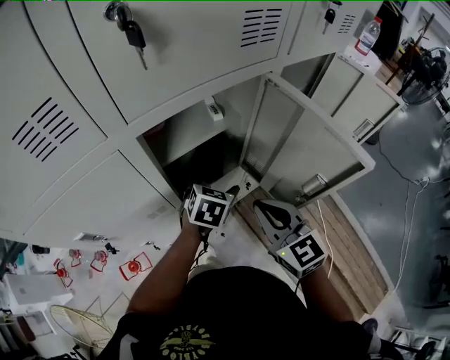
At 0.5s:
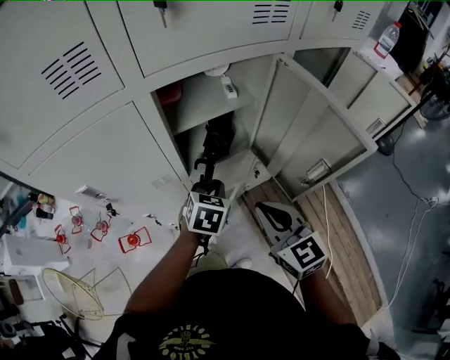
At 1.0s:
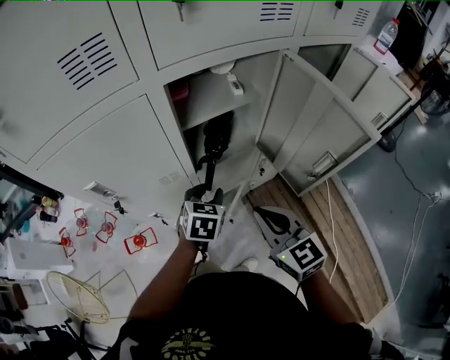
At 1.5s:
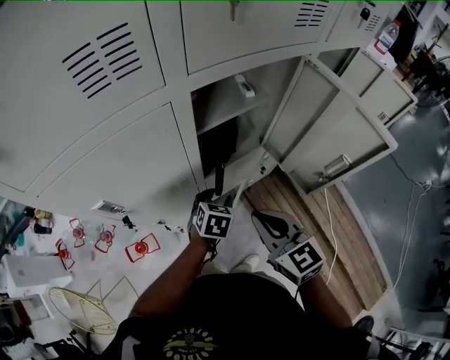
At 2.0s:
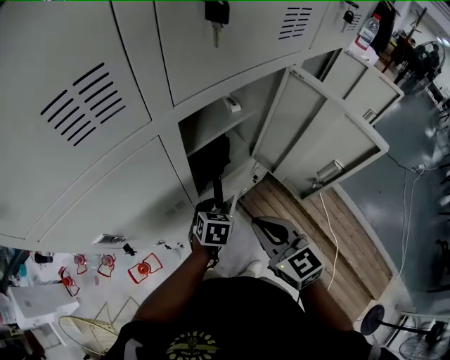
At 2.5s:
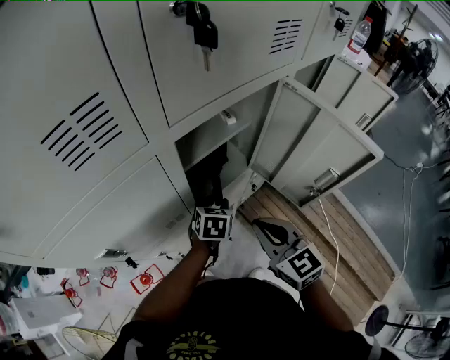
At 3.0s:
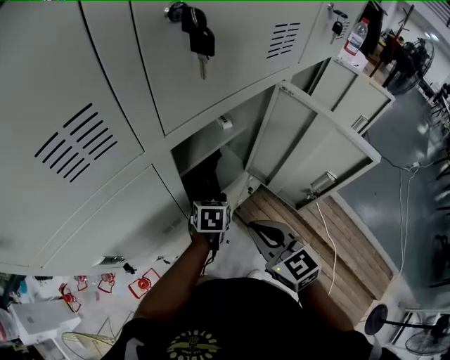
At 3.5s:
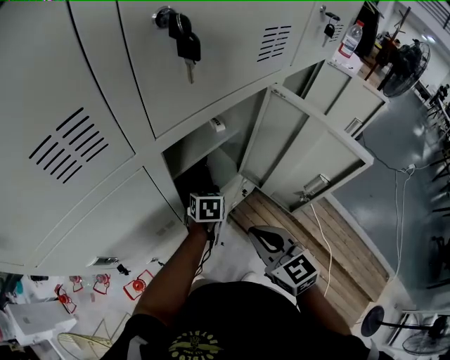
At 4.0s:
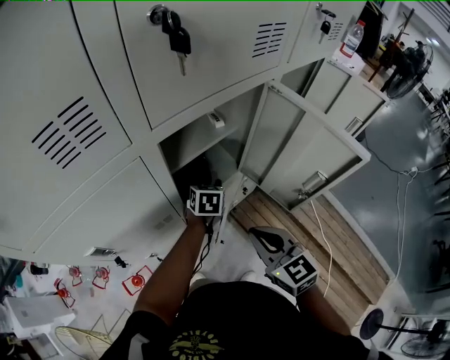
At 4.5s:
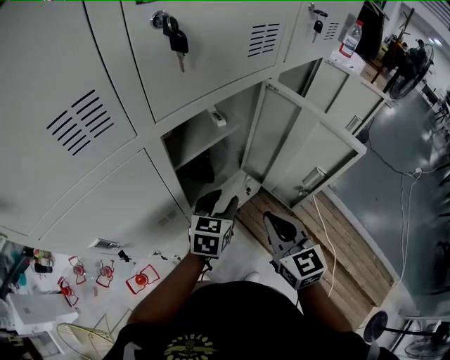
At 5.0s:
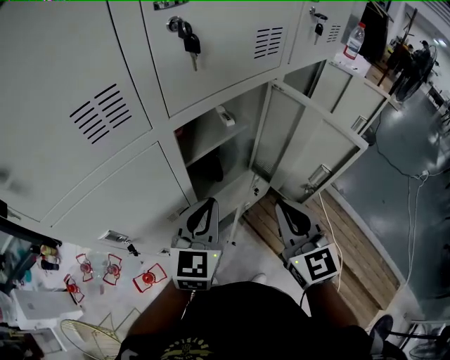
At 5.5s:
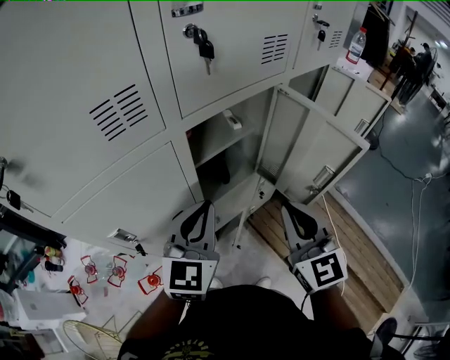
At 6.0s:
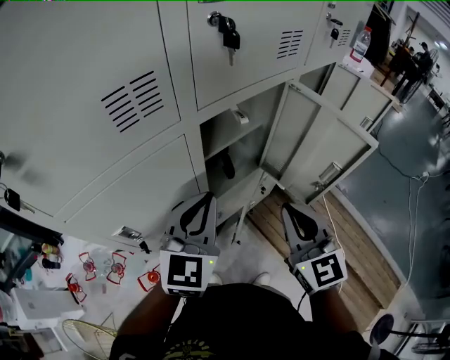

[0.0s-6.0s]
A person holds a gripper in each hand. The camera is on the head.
0.0s to 2.0s: The right gripper goes about 10 cm to the left, while the left gripper travels downward, to the left and backward by roughly 15 cm, and closes up.
2.0s to 4.0s: The left gripper is displaced forward by some 10 cm.
4.0s to 6.0s: The right gripper shifts approximately 10 cm upward, and swivels about 20 degrees, while the left gripper shifts some 30 cm upward and backward, tips its fingers upward by approximately 40 degrees, and closes its fingers.

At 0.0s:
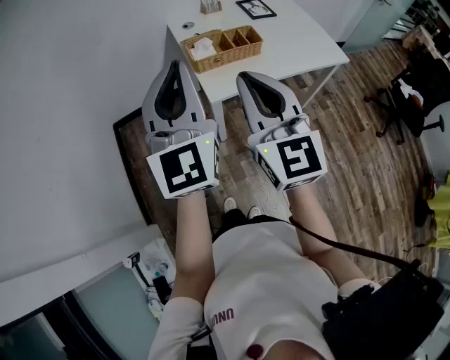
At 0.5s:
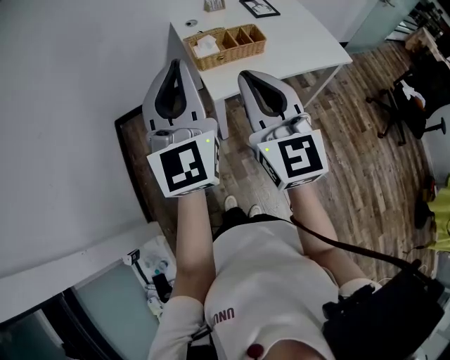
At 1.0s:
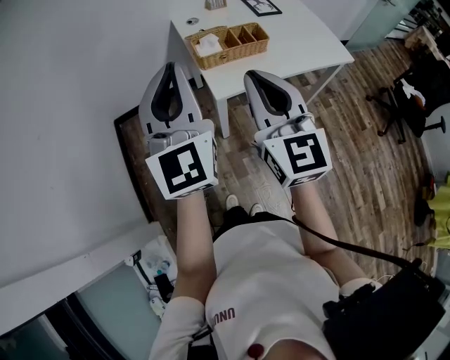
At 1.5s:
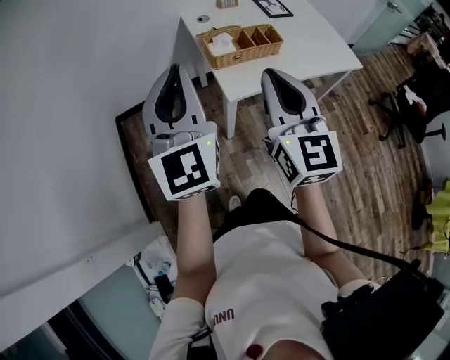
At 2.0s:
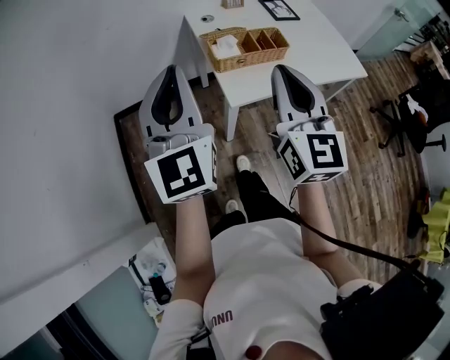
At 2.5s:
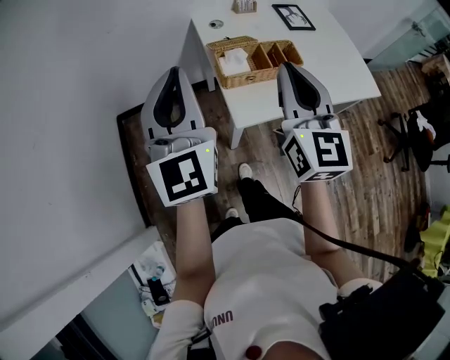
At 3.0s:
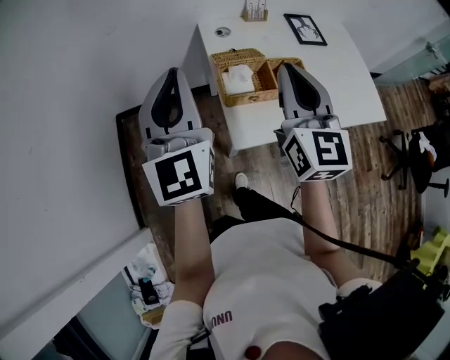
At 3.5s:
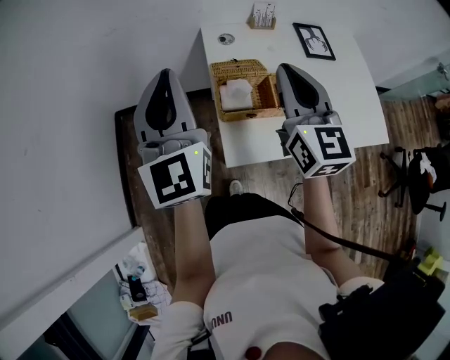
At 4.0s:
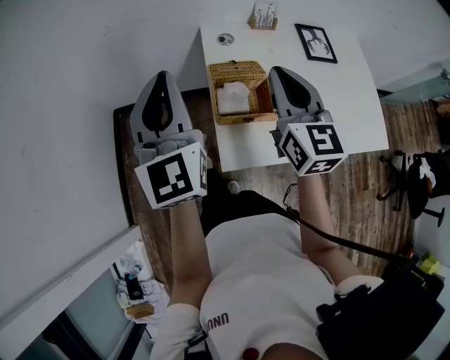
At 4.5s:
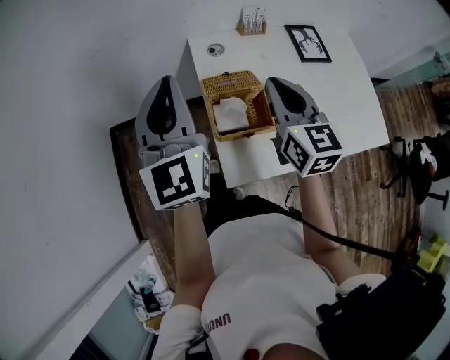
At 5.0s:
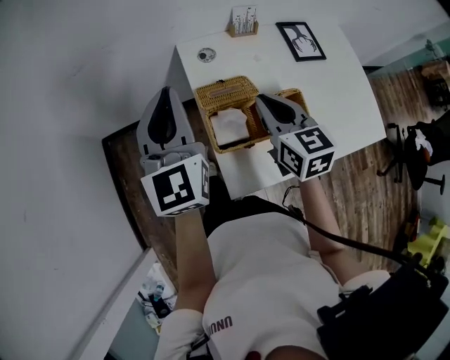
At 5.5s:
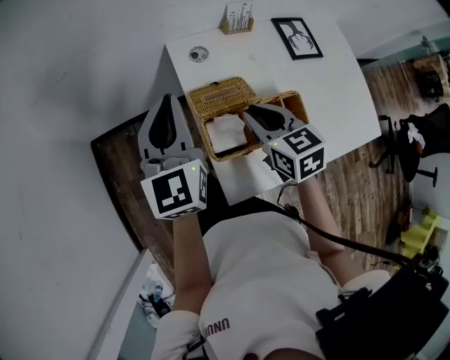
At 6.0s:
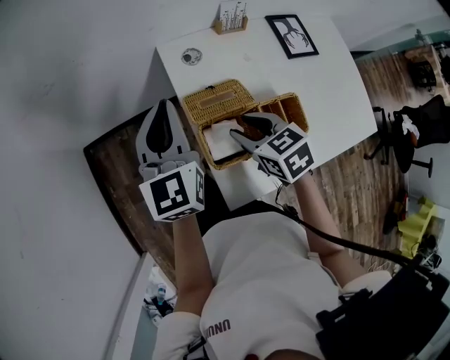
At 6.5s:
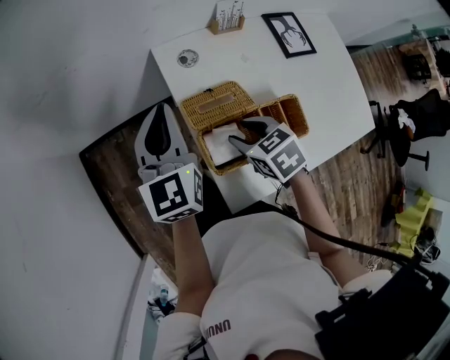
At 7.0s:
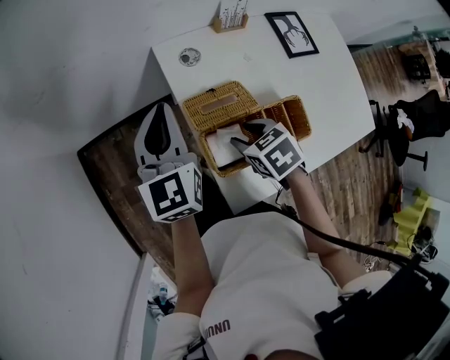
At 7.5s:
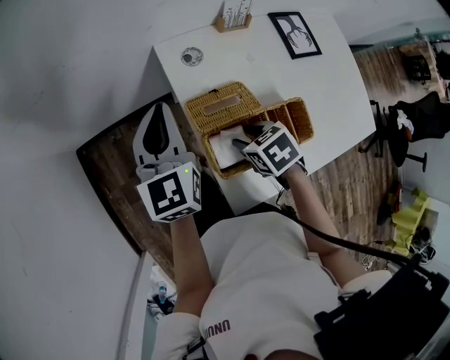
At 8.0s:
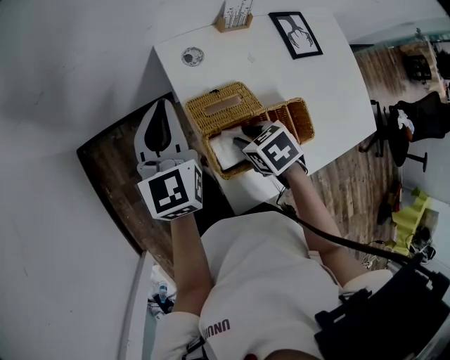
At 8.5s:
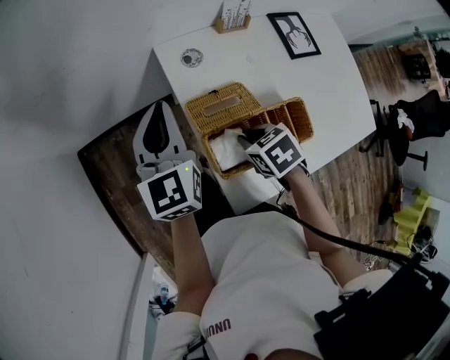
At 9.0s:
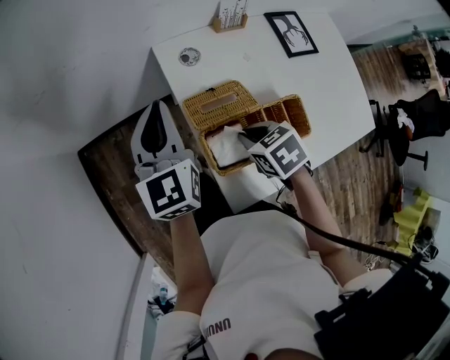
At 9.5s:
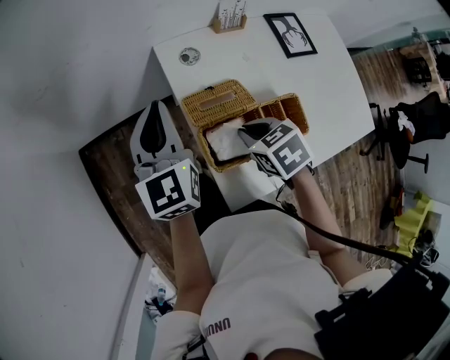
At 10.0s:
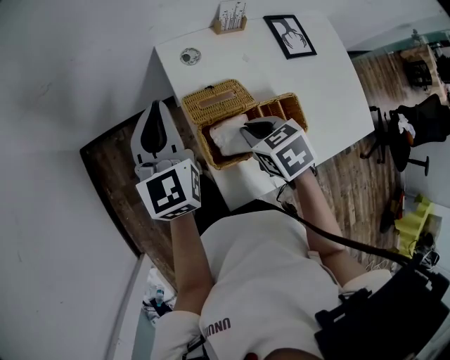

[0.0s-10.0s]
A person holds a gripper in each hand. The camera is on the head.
0.0s to 2.0s: The left gripper travels to the left and forward by about 10 cm. The right gripper moves forward, approximately 10 cm.
2.0s to 4.0s: The two grippers go some 25 cm forward.
4.0s to 6.0s: The right gripper is displaced downward by about 20 cm, points its fingers approximately 40 degrees further downward, and opens; the left gripper travels forward and downward by roughly 20 cm, and changes its angle by some 20 degrees.
6.0s to 8.0s: The left gripper moves roughly 5 cm, while the right gripper travels downward by roughly 5 cm, and swivels roughly 20 degrees.
8.0s to 10.0s: The right gripper heads upward, covering some 5 cm, and closes up.

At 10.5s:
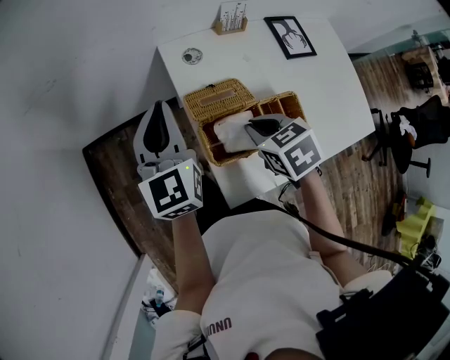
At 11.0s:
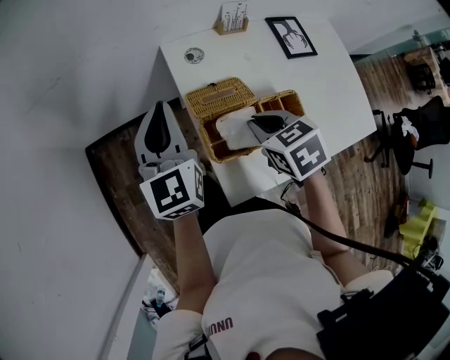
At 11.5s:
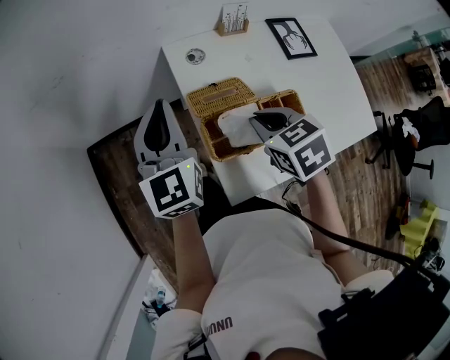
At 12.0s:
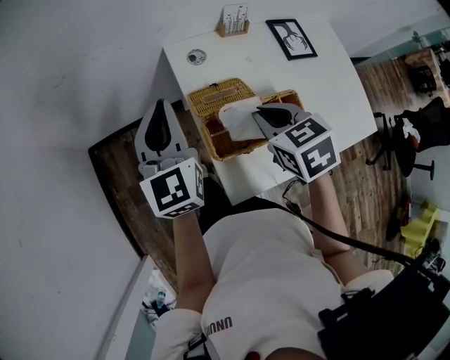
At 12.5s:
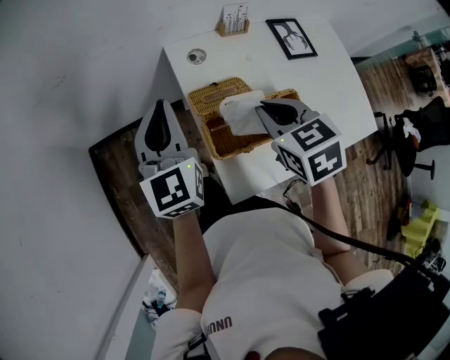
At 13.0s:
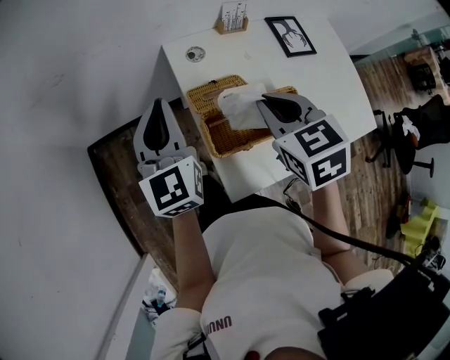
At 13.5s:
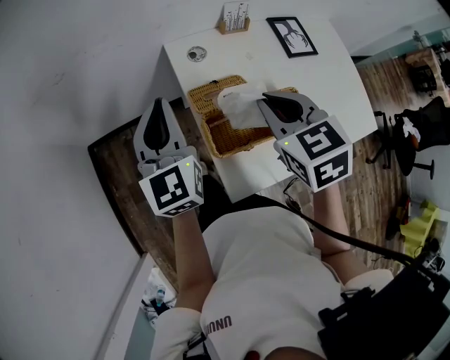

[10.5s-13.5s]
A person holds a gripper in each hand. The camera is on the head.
10.5s to 12.0s: The right gripper shifts approximately 5 cm upward.
12.0s to 13.5s: The right gripper travels upward by about 5 cm.

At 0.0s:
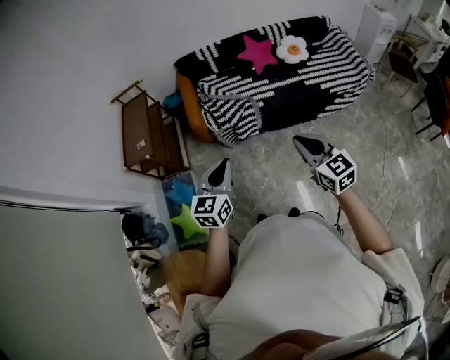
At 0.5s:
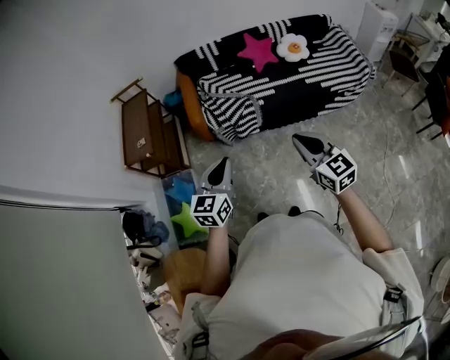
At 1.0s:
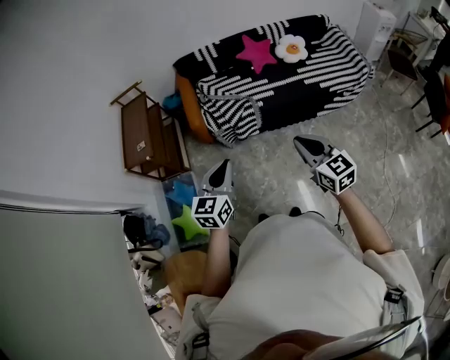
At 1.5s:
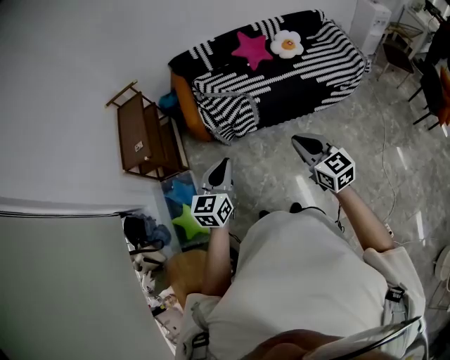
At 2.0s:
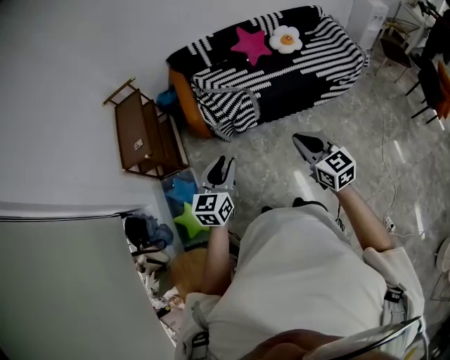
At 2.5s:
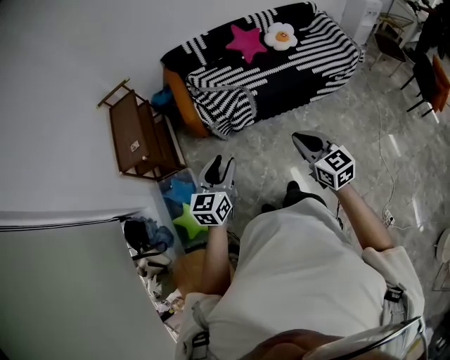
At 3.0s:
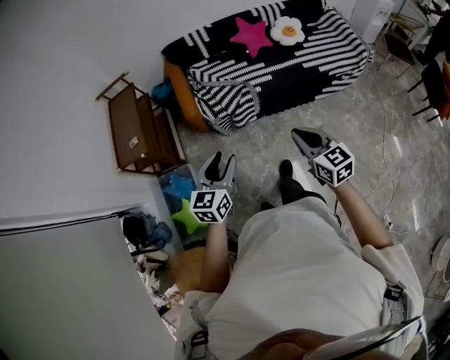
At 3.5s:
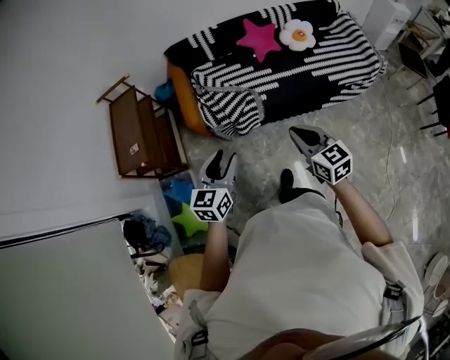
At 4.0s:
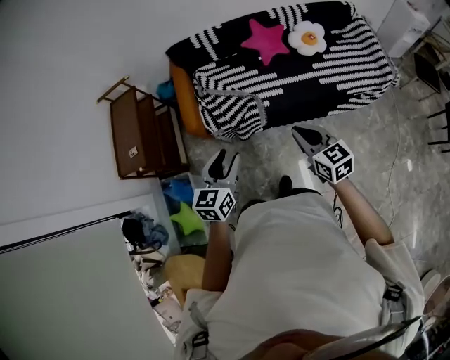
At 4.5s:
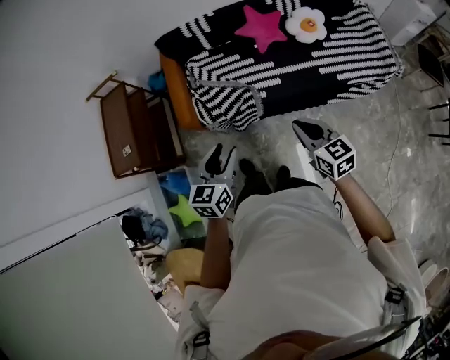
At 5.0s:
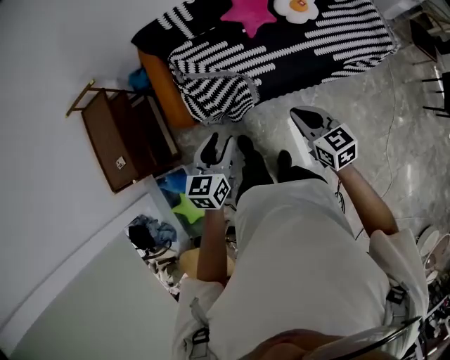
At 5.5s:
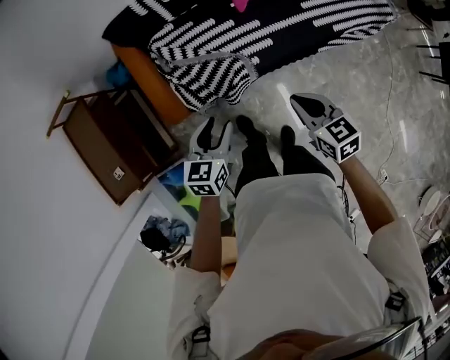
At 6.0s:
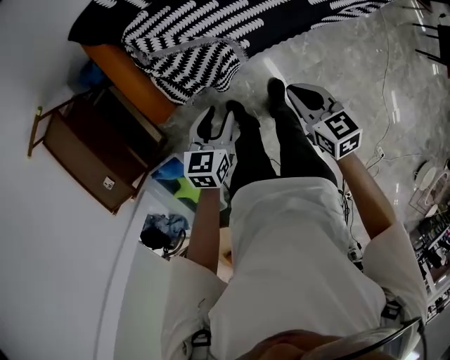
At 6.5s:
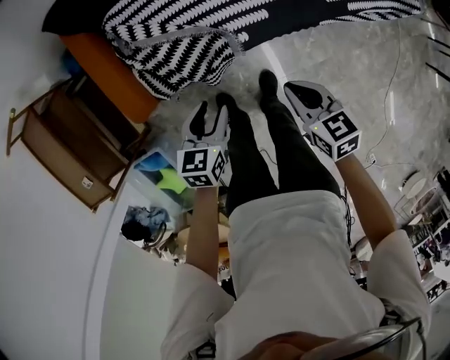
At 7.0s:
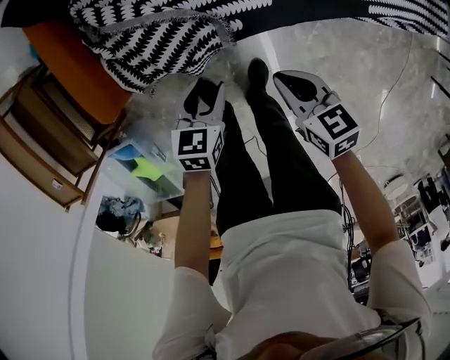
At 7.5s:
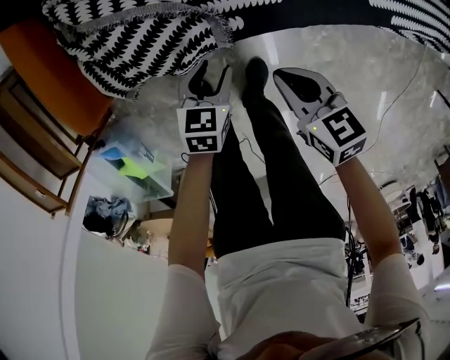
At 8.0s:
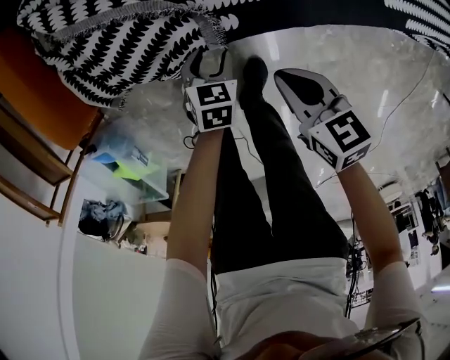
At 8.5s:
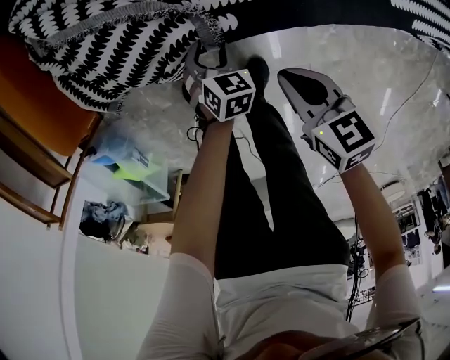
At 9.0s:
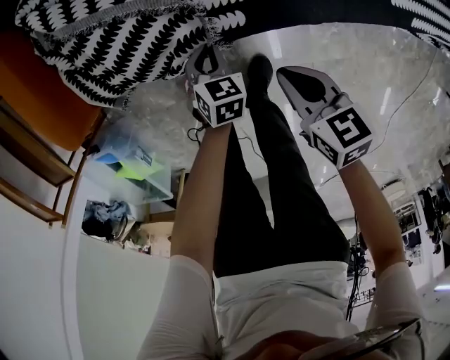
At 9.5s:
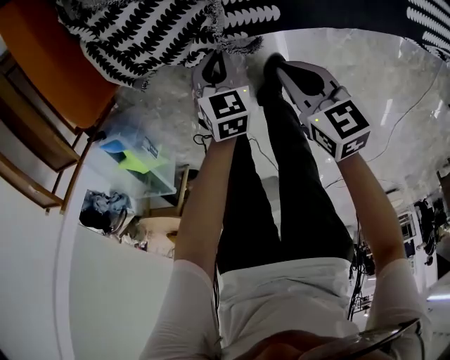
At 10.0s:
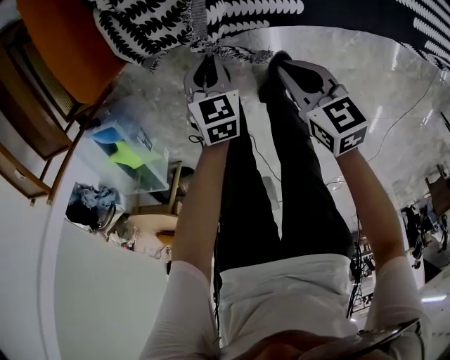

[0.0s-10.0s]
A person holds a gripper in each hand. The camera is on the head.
0.0s to 2.0s: The left gripper shifts by about 5 cm, and opens up, while the right gripper moves roughly 5 cm.
2.0s to 4.0s: The two grippers go approximately 30 cm forward.
4.0s to 6.0s: The right gripper moves forward, downward and to the left, approximately 30 cm, and changes its angle by some 30 degrees. Meanwhile the left gripper travels forward and downward by roughly 35 cm, and turns by some 30 degrees.
6.0s to 8.0s: The grippers both shift downward by about 40 cm. The right gripper turns by roughly 20 degrees, while the left gripper turns by about 30 degrees.
8.0s to 10.0s: The grippers both shift to the left by some 15 cm. The left gripper closes its fingers.
